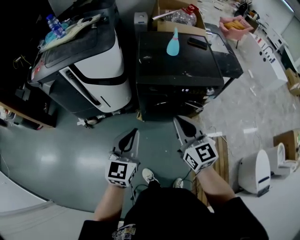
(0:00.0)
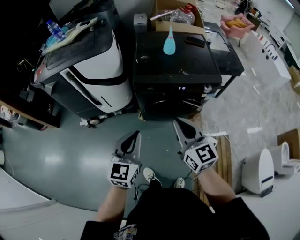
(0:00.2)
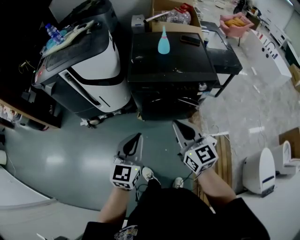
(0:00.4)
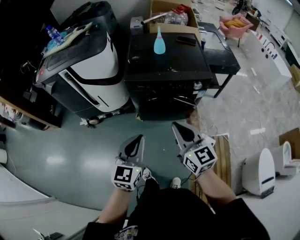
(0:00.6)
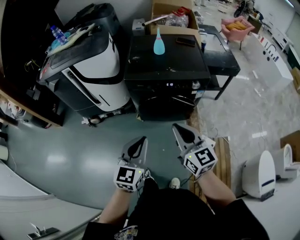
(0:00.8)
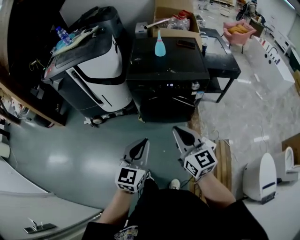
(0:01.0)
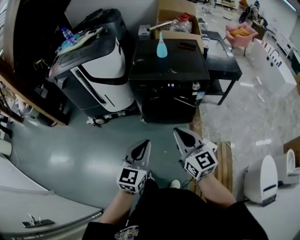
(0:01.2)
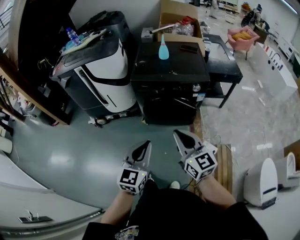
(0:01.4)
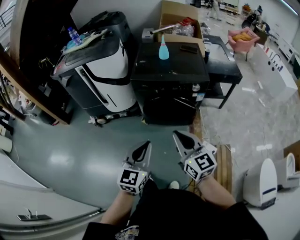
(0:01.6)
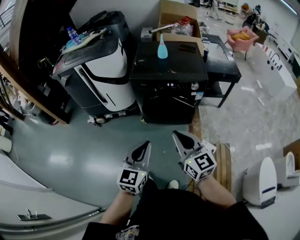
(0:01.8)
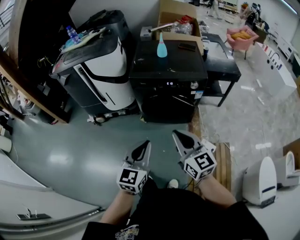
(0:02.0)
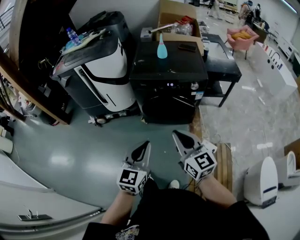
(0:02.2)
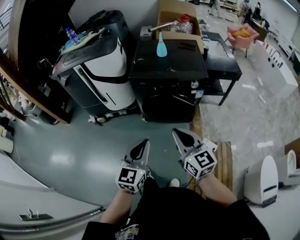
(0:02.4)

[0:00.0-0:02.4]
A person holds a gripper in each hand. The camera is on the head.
0:00.0 to 0:01.2: Both grippers travel together backward and to the right, approximately 25 cm.
0:01.2 to 0:02.4: There are only small adjustments of the grippers.

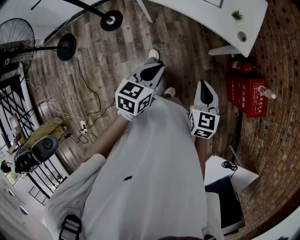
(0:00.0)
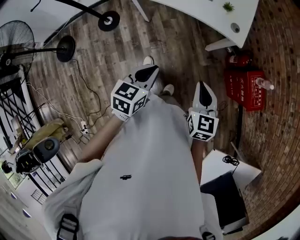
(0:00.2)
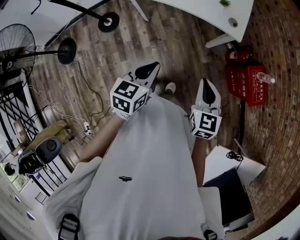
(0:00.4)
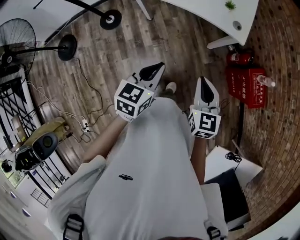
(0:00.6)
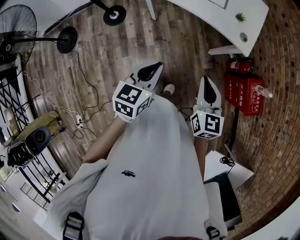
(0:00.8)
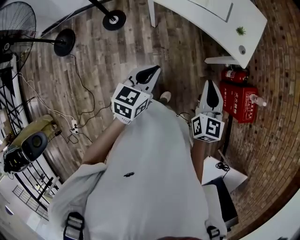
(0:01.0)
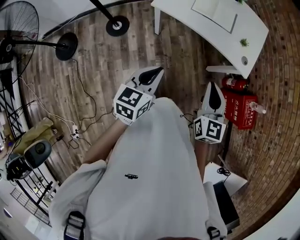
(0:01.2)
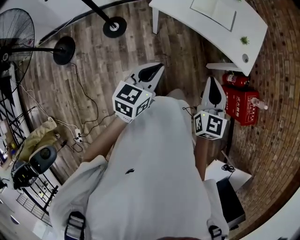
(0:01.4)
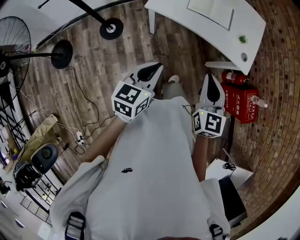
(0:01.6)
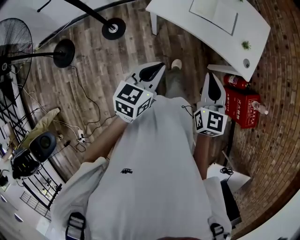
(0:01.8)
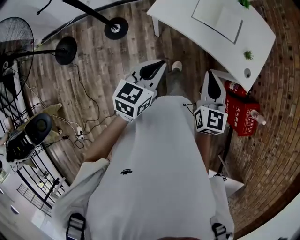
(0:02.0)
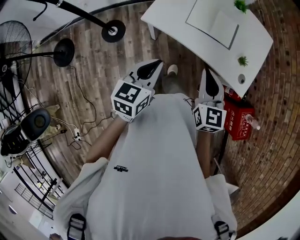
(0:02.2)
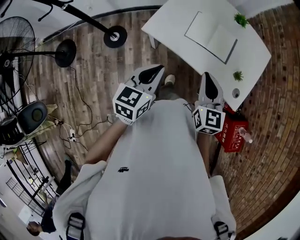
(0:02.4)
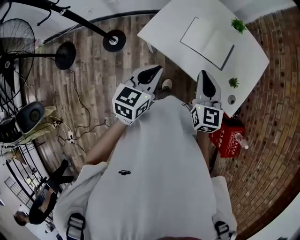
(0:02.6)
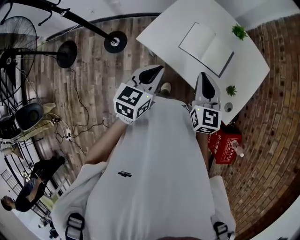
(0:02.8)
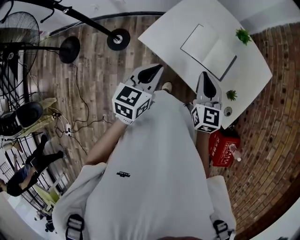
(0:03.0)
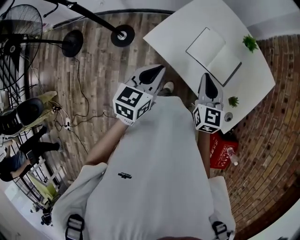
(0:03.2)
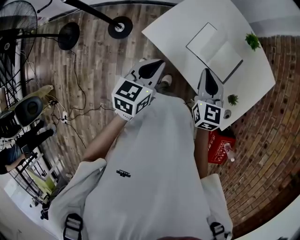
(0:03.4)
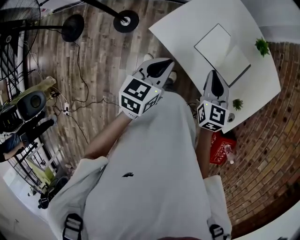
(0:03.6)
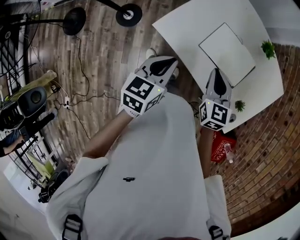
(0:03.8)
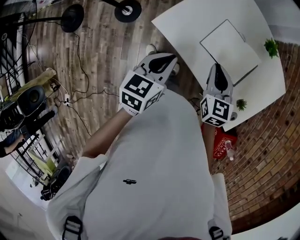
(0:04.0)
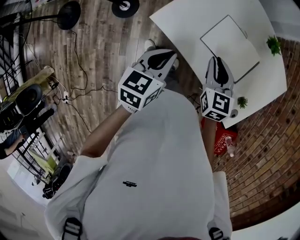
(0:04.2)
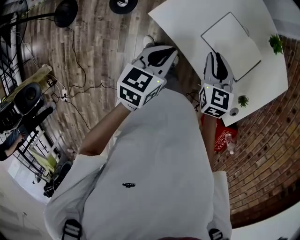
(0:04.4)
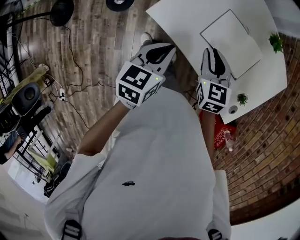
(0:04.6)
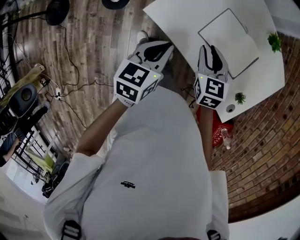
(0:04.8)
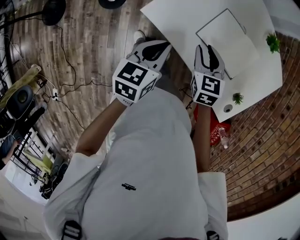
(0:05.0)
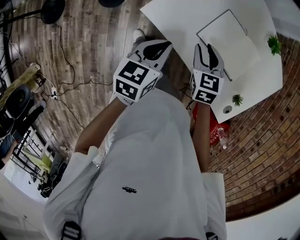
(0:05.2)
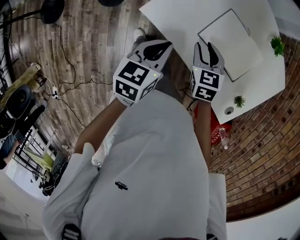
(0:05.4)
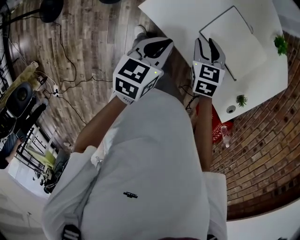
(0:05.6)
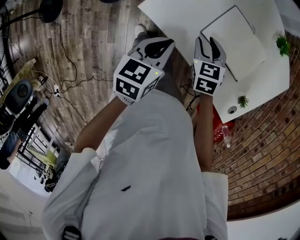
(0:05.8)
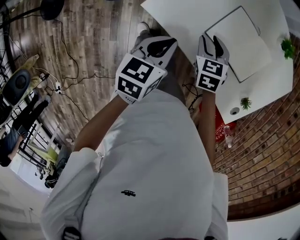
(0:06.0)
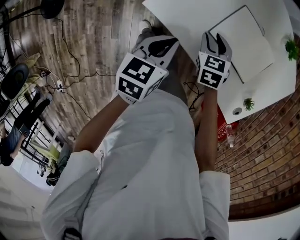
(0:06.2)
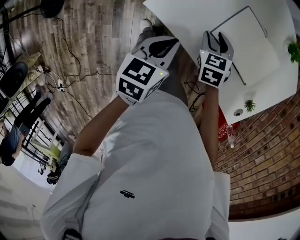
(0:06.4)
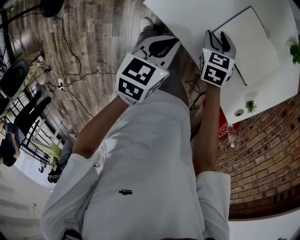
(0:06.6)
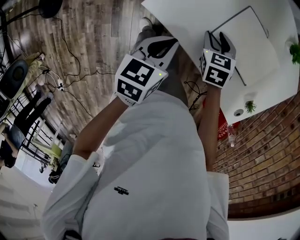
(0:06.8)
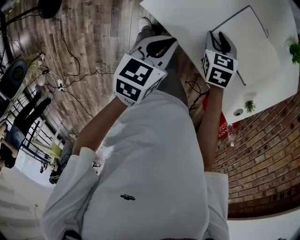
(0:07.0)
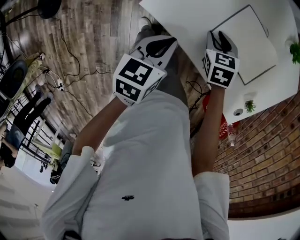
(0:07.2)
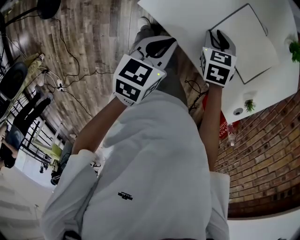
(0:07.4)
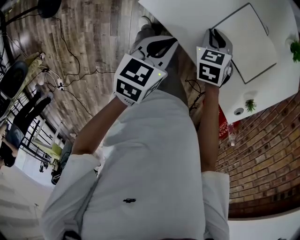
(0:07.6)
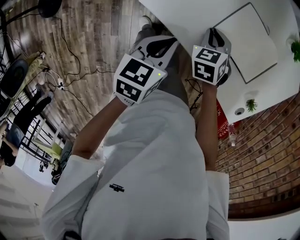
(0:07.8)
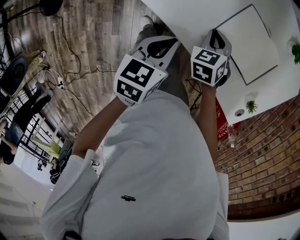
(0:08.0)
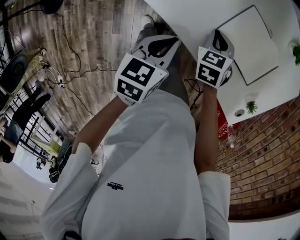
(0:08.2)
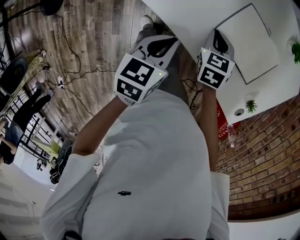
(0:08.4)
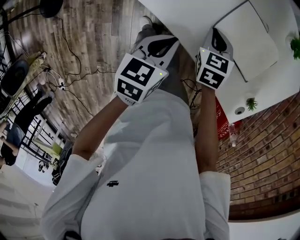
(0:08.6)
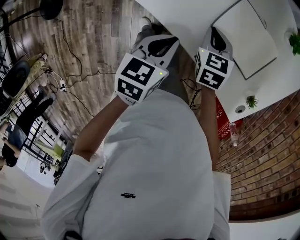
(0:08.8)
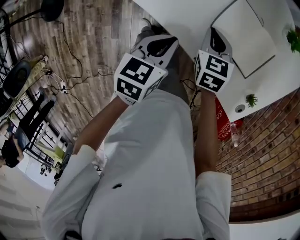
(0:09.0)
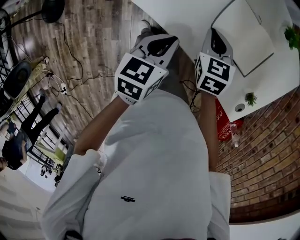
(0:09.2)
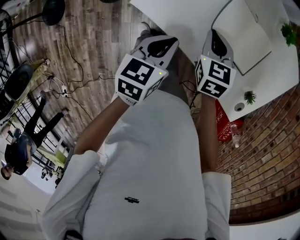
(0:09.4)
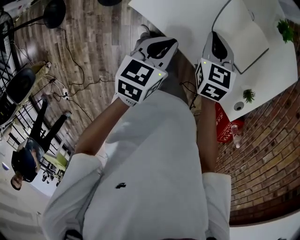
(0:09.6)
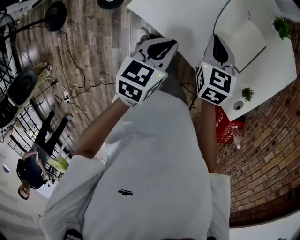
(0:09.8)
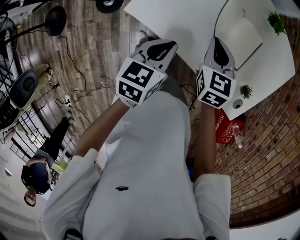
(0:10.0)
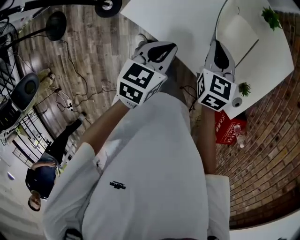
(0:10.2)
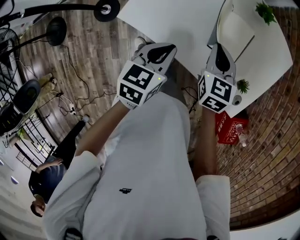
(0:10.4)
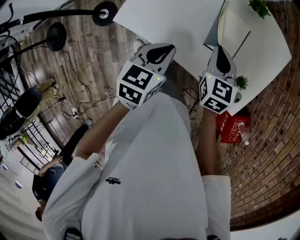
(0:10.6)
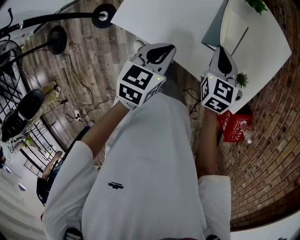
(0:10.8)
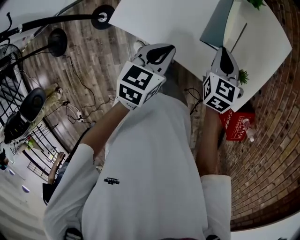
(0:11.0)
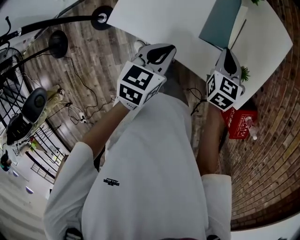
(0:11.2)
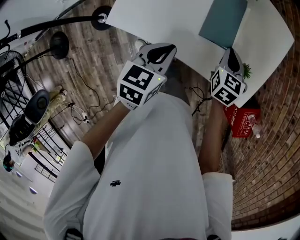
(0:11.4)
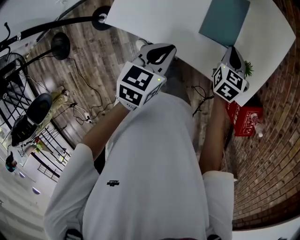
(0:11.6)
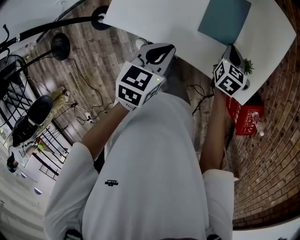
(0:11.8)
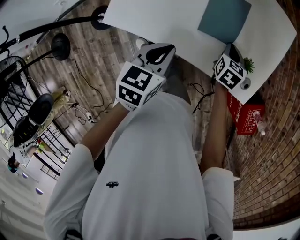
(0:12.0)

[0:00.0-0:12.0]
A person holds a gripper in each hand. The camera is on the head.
0:00.0 to 0:01.6: The left gripper shifts approximately 15 cm to the left and upward; the right gripper goes about 20 cm to the left, upward and forward.
0:01.6 to 0:03.0: The grippers both shift forward by approximately 30 cm.
0:03.0 to 0:04.4: The left gripper moves downward and forward, approximately 10 cm. Meanwhile the right gripper is displaced downward, forward and to the left by some 15 cm.
0:04.4 to 0:06.0: The right gripper moves downward, approximately 15 cm, and swivels some 20 degrees; the left gripper heads downward, covering about 10 cm.
0:06.0 to 0:07.6: The right gripper closes.
0:07.6 to 0:09.0: The right gripper heads upward, covering roughly 5 cm.
0:09.0 to 0:10.4: The right gripper is displaced to the right and upward by some 15 cm. The left gripper travels to the right and upward by approximately 10 cm.
0:10.4 to 0:12.0: The left gripper moves to the right, roughly 5 cm, while the right gripper moves to the right and downward, roughly 20 cm, and turns by roughly 30 degrees.

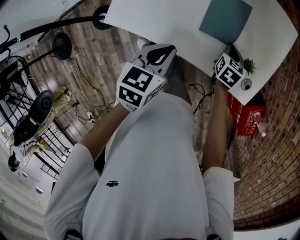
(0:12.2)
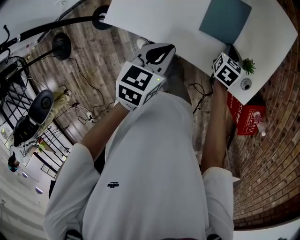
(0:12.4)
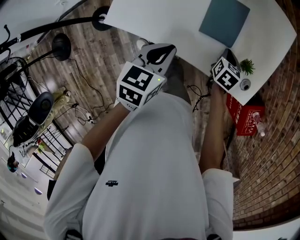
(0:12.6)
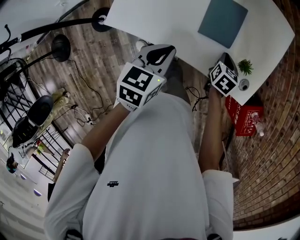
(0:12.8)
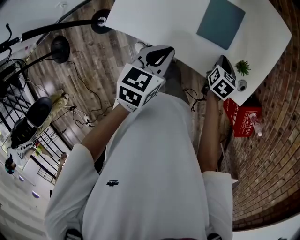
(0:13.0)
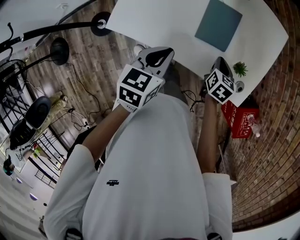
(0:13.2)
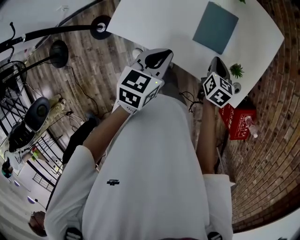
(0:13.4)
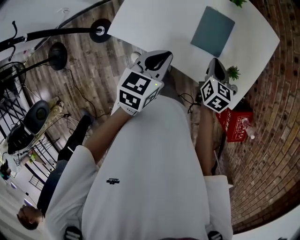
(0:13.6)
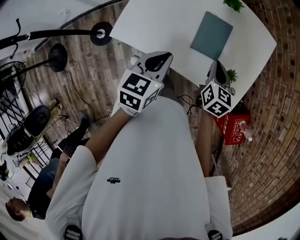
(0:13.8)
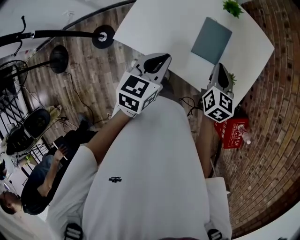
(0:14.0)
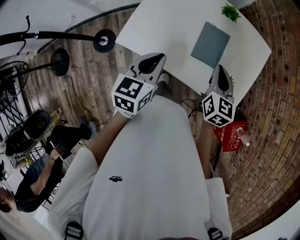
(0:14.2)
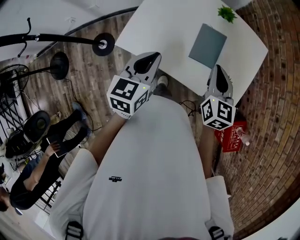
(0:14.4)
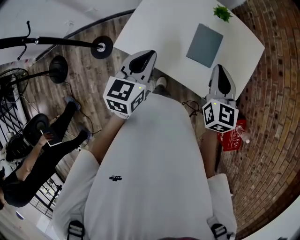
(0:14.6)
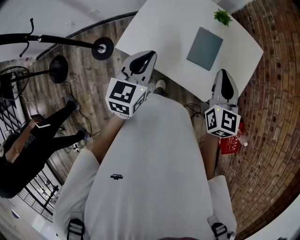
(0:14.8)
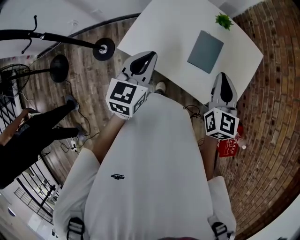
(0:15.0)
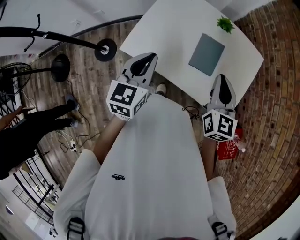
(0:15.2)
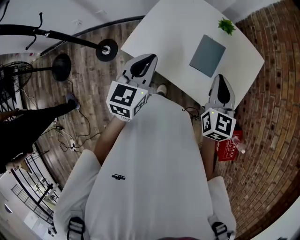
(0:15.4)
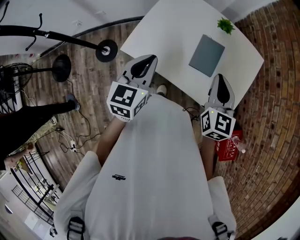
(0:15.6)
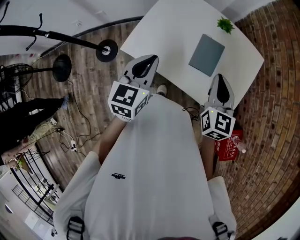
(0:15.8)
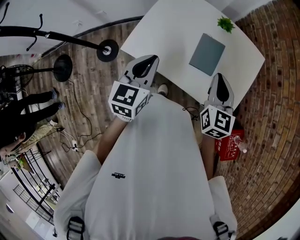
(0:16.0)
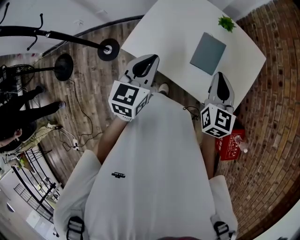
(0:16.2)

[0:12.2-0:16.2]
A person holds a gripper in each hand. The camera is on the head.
0:12.2 to 0:13.6: The left gripper moves about 5 cm. The right gripper shifts about 10 cm upward.
0:13.6 to 0:14.8: The left gripper goes about 15 cm upward and to the left. Meanwhile the right gripper moves upward, approximately 20 cm, and swivels approximately 30 degrees.
0:14.8 to 0:16.2: The grippers make only small movements.

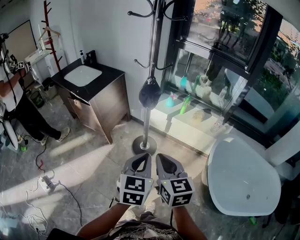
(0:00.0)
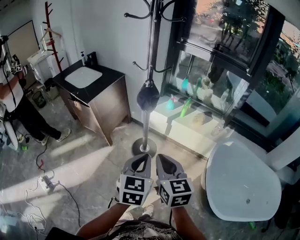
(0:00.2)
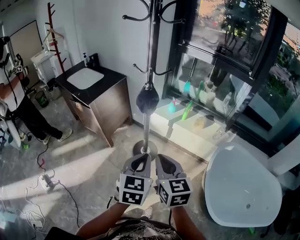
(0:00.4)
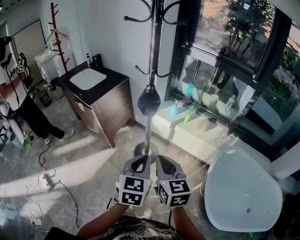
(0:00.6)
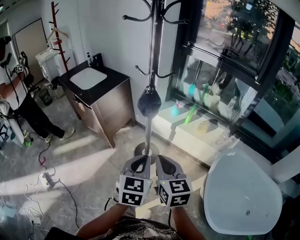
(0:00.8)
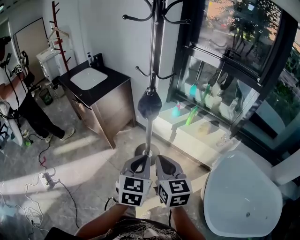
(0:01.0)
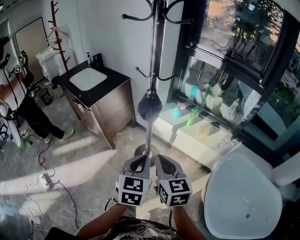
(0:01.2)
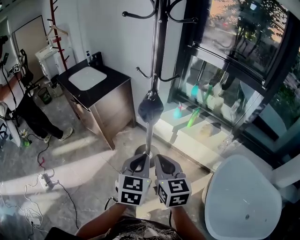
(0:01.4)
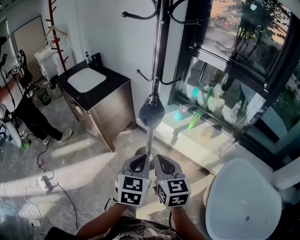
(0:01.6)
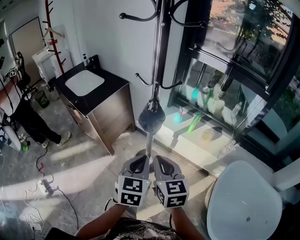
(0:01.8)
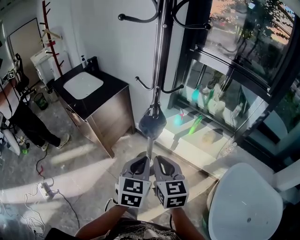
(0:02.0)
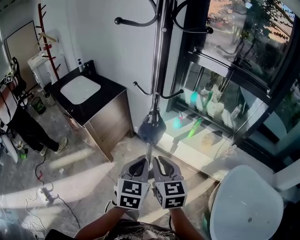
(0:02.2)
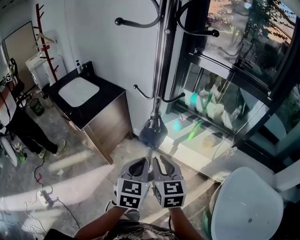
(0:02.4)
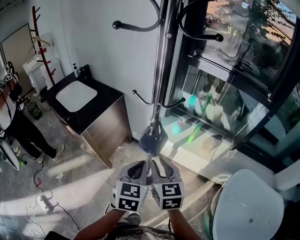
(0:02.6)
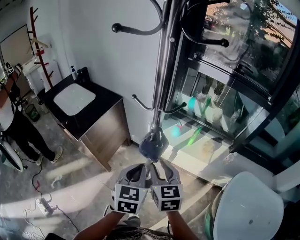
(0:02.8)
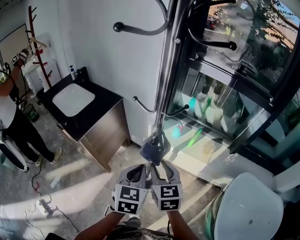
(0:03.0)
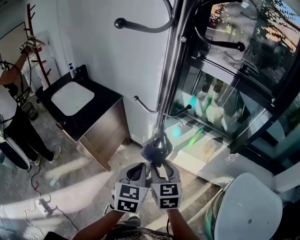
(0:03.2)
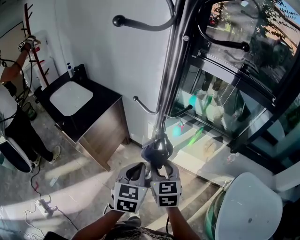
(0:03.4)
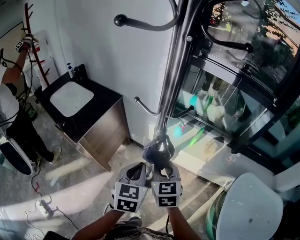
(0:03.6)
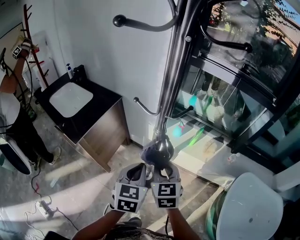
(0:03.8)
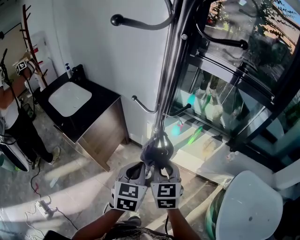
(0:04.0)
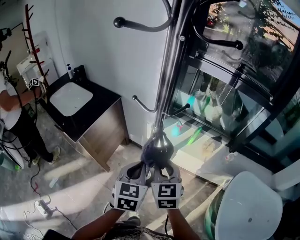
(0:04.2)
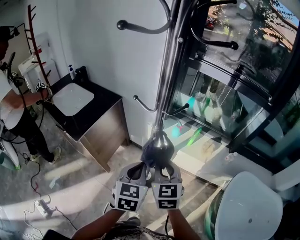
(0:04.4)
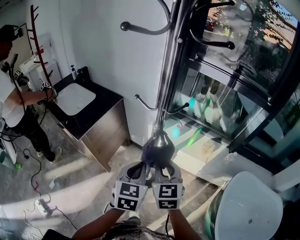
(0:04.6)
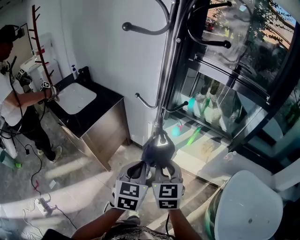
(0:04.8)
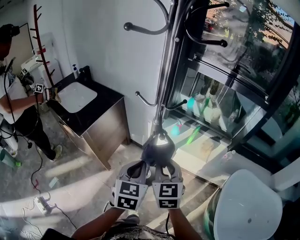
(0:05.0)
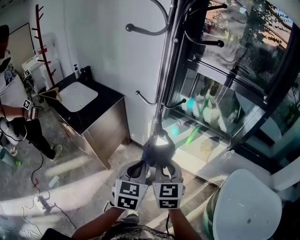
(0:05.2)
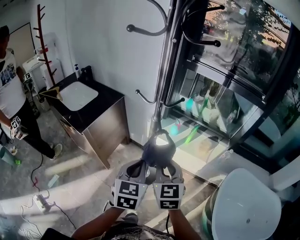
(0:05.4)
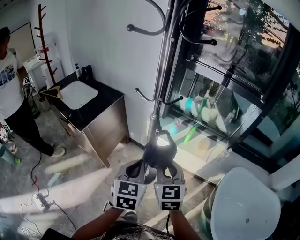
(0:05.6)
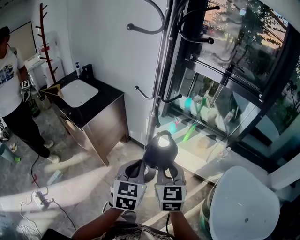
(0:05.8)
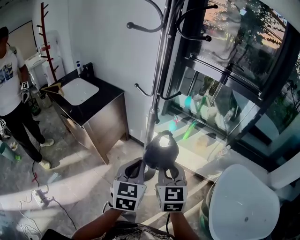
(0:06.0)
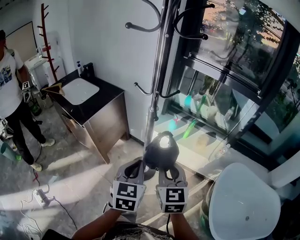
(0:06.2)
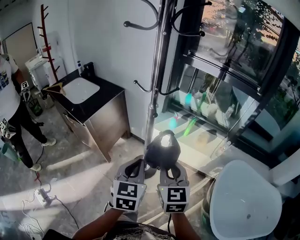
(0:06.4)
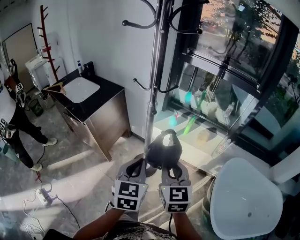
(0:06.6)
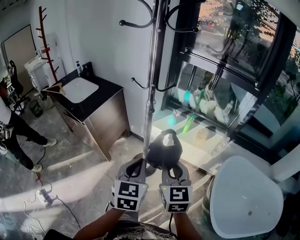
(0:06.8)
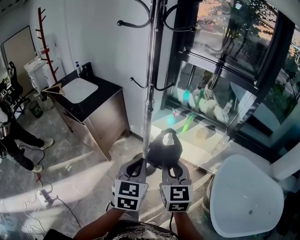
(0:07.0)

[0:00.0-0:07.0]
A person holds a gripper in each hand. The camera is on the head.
0:00.0 to 0:01.4: Both grippers travel together forward, about 10 cm.
0:01.4 to 0:02.8: Both grippers travel together forward, about 15 cm. The right gripper opens.
0:02.8 to 0:04.2: The right gripper closes up.
0:04.2 to 0:05.6: Both grippers travel together backward, about 10 cm.
0:05.6 to 0:07.0: Both grippers travel together backward, some 10 cm.
